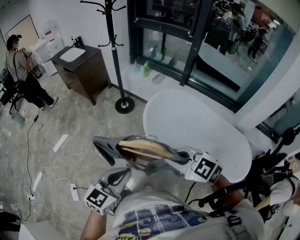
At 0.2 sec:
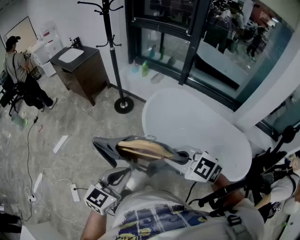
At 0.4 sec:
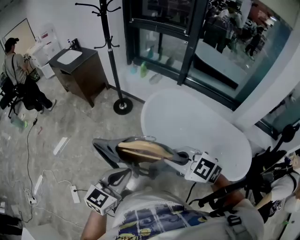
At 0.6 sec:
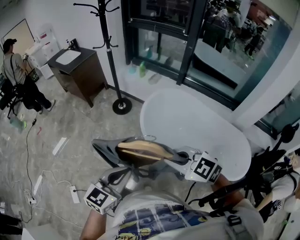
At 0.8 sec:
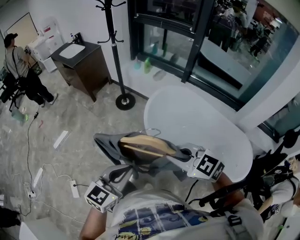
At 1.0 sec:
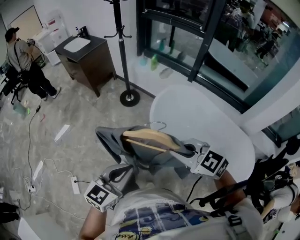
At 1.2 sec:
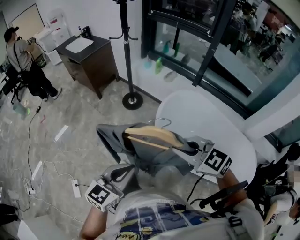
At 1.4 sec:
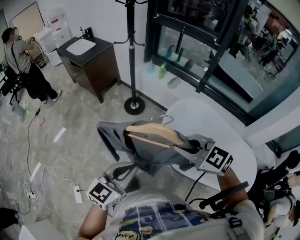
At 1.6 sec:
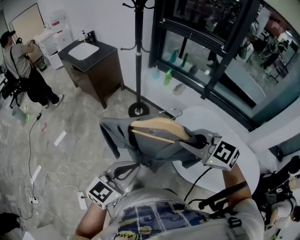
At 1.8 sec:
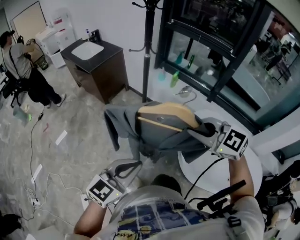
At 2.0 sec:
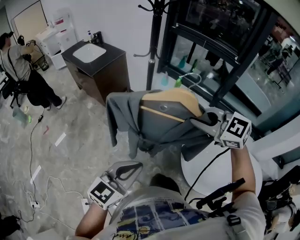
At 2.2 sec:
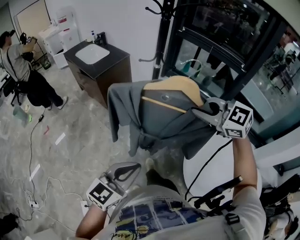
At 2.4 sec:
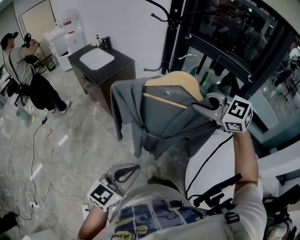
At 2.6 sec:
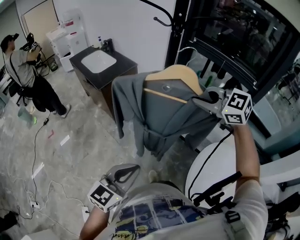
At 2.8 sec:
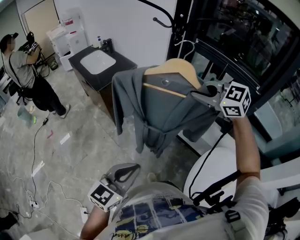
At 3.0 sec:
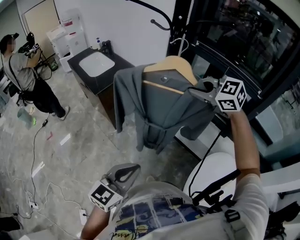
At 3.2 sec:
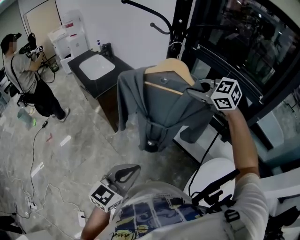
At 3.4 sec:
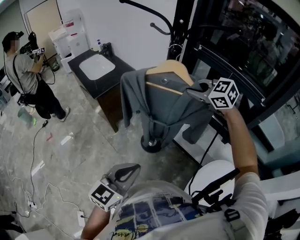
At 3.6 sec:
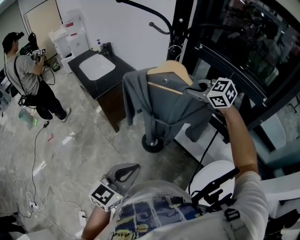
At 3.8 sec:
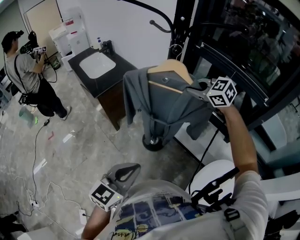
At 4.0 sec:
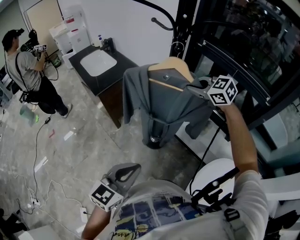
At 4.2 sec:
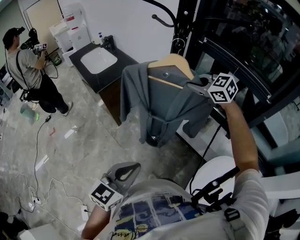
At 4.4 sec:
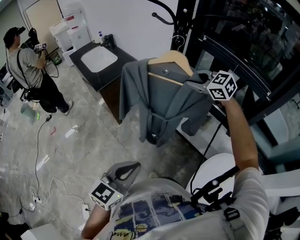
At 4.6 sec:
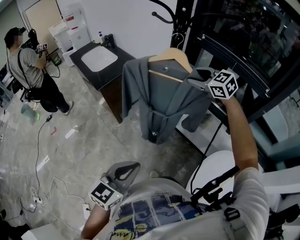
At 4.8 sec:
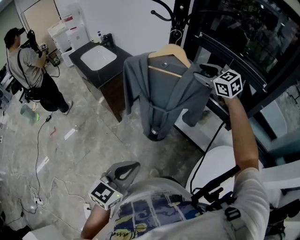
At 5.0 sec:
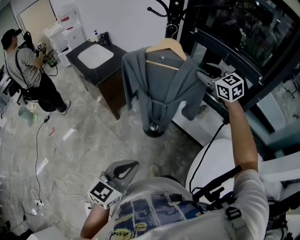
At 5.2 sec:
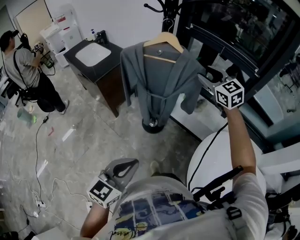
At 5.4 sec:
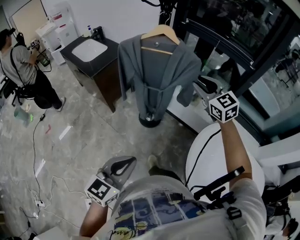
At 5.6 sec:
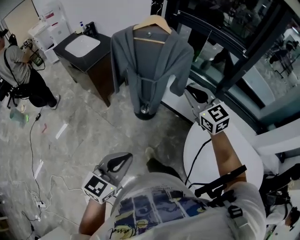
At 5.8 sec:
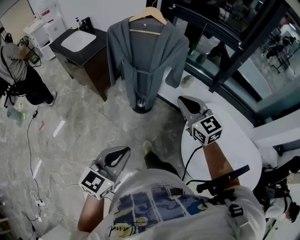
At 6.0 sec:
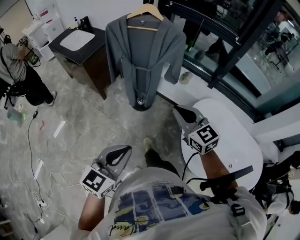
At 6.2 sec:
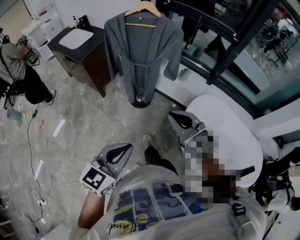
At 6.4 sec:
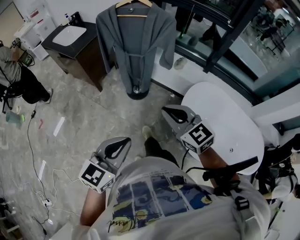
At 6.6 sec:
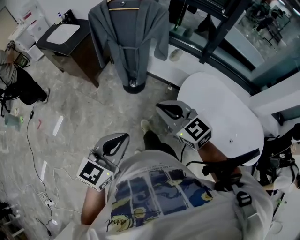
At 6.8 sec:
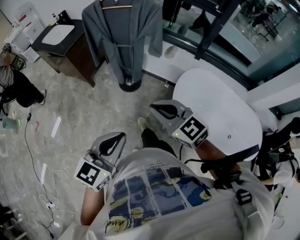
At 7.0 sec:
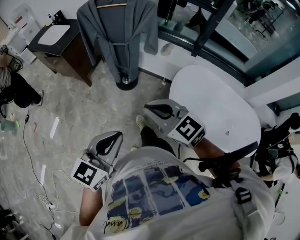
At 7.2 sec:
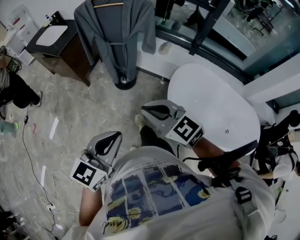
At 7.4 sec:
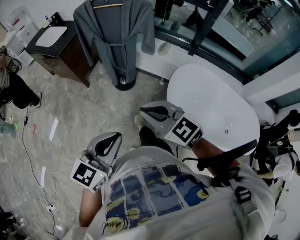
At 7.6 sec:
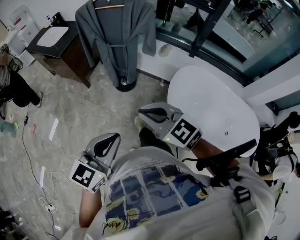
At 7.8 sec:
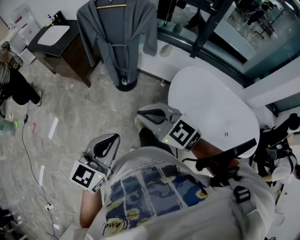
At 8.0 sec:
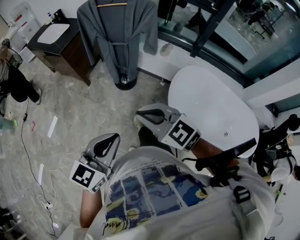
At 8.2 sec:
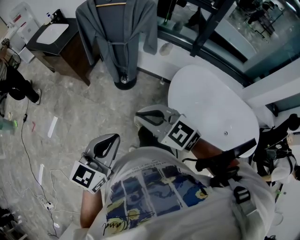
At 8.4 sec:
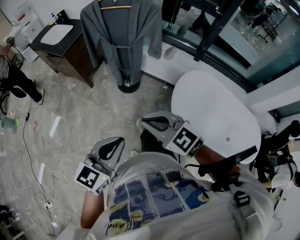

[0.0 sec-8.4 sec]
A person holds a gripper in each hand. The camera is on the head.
0.0 sec to 1.4 sec: The two grippers go approximately 15 cm forward.
1.4 sec to 2.8 sec: The right gripper travels forward by some 50 cm. Meanwhile the left gripper travels forward by roughly 35 cm.
2.8 sec to 4.2 sec: The left gripper shifts approximately 10 cm forward, while the right gripper shifts approximately 20 cm forward and downward.
4.2 sec to 5.6 sec: The left gripper moves backward, about 20 cm. Meanwhile the right gripper heads backward, covering about 30 cm, turns by about 40 degrees, and opens, then closes once more.
5.6 sec to 7.0 sec: The left gripper goes some 10 cm backward. The right gripper moves backward, roughly 25 cm.
7.0 sec to 8.4 sec: The grippers make only small movements.

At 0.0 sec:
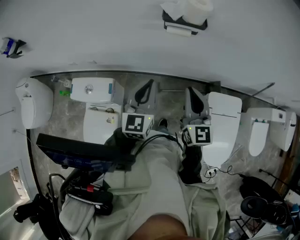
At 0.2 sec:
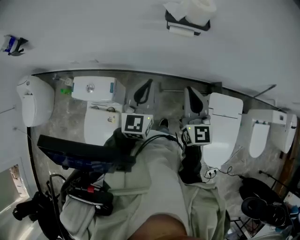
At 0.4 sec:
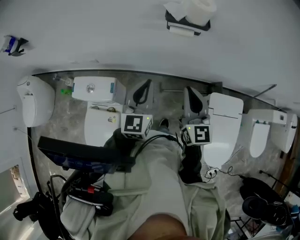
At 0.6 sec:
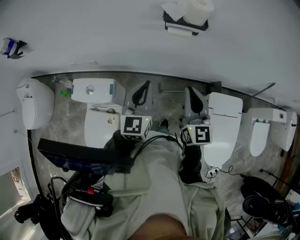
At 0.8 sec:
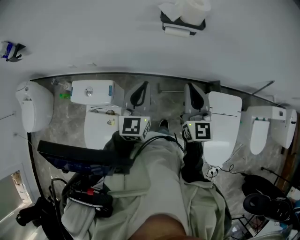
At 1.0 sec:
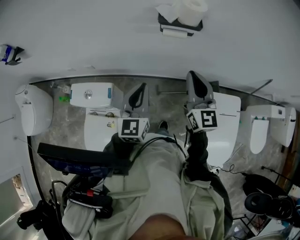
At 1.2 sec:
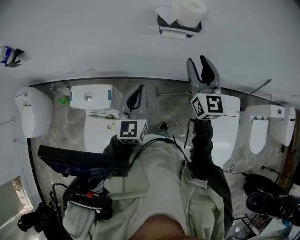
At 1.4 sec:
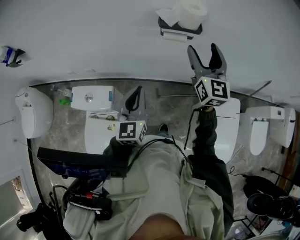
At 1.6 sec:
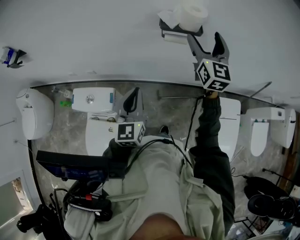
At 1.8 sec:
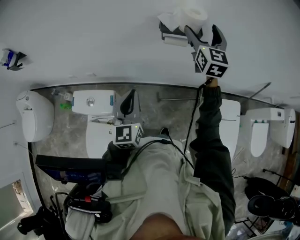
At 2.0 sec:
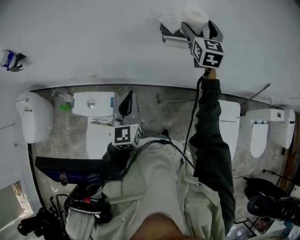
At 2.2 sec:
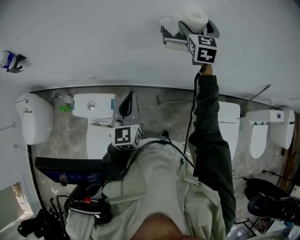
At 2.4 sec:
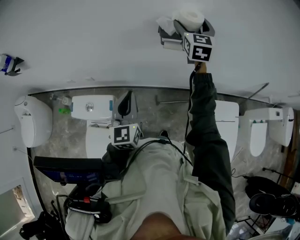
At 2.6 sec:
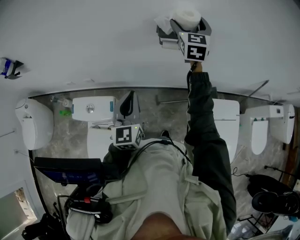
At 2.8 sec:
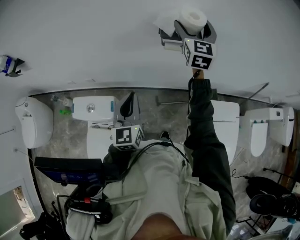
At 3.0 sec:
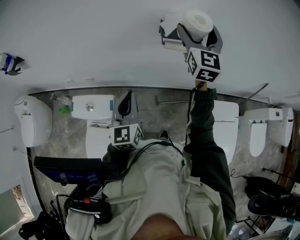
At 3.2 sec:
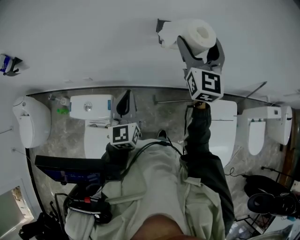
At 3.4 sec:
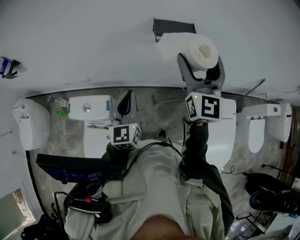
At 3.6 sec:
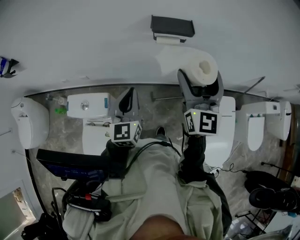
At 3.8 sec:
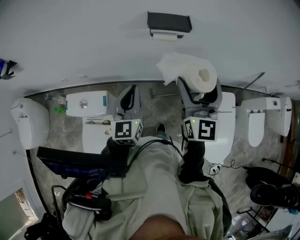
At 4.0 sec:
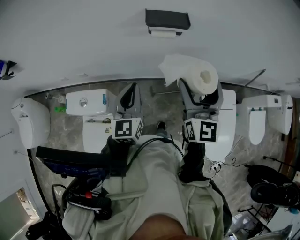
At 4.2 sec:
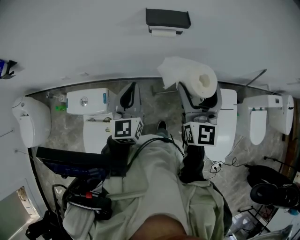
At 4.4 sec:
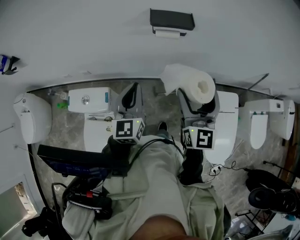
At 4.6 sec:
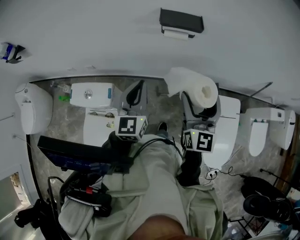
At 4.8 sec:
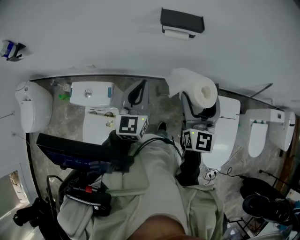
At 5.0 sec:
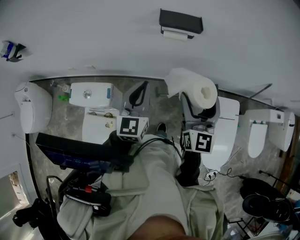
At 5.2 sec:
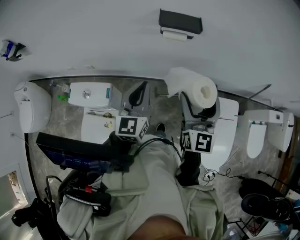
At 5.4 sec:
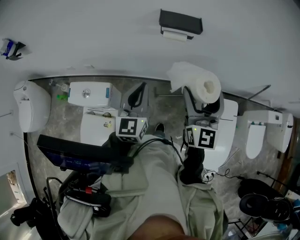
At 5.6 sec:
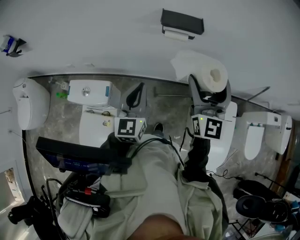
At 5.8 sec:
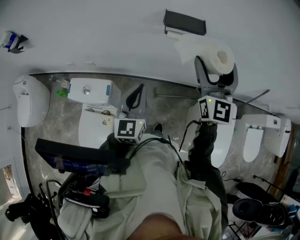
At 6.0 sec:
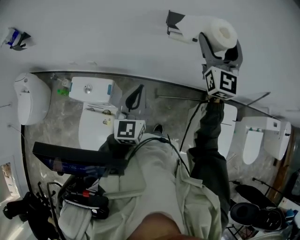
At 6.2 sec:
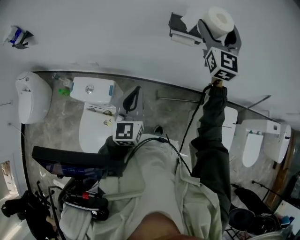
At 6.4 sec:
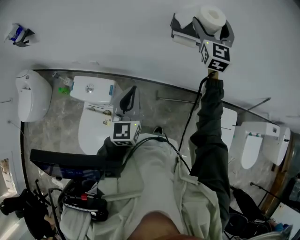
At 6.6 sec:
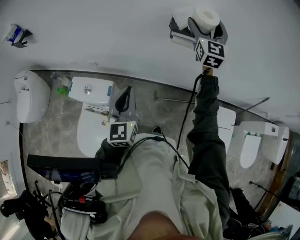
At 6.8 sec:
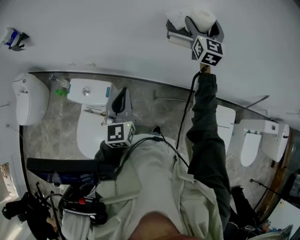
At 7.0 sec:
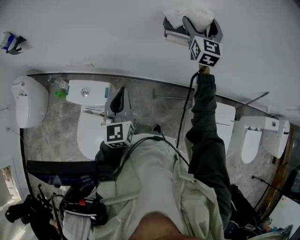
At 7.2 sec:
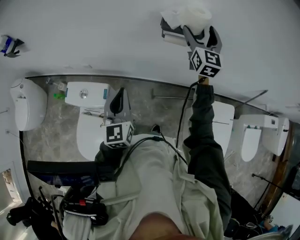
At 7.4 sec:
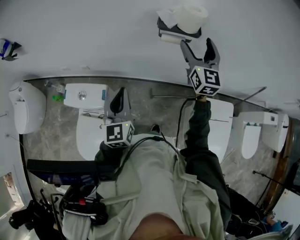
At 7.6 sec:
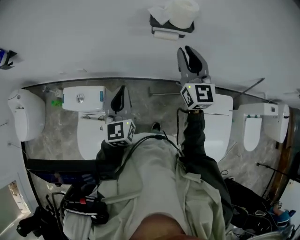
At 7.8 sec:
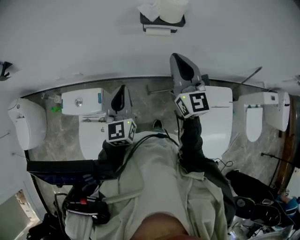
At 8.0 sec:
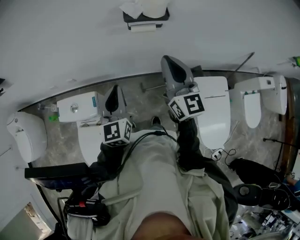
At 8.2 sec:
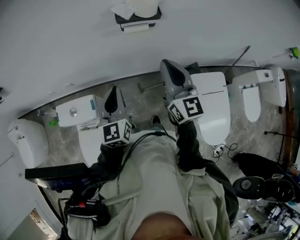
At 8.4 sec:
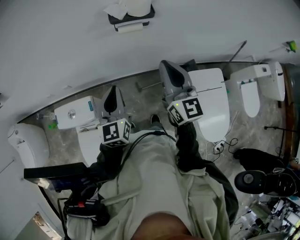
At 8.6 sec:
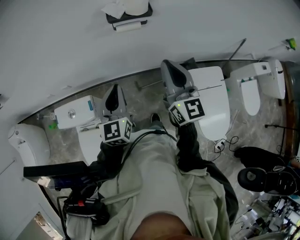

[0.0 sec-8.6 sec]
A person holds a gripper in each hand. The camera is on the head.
0.0 sec to 1.4 sec: The right gripper is displaced forward and upward by approximately 15 cm, and opens.
1.4 sec to 2.8 sec: The right gripper travels forward by roughly 15 cm.
2.8 sec to 4.4 sec: The right gripper heads backward, covering about 30 cm. Meanwhile the left gripper shifts roughly 5 cm to the right.
4.4 sec to 5.8 sec: The right gripper travels forward and upward by some 10 cm.
5.8 sec to 7.2 sec: The left gripper moves to the left, approximately 5 cm. Meanwhile the right gripper is displaced forward by approximately 20 cm.
7.2 sec to 8.6 sec: The left gripper is displaced to the right by roughly 10 cm. Meanwhile the right gripper is displaced backward by approximately 25 cm, and closes its fingers.

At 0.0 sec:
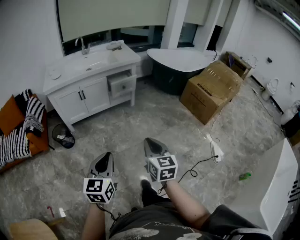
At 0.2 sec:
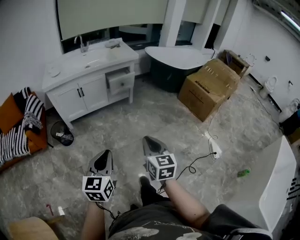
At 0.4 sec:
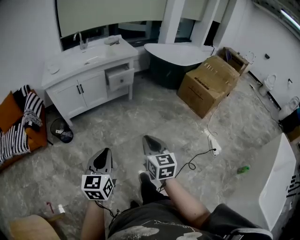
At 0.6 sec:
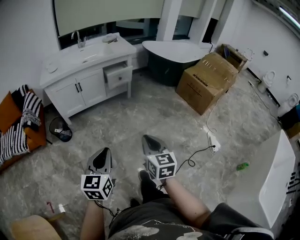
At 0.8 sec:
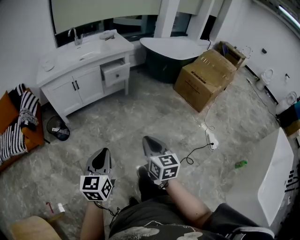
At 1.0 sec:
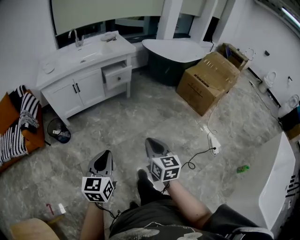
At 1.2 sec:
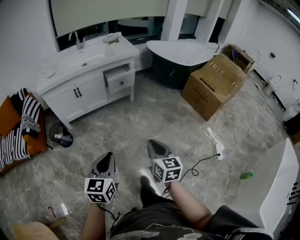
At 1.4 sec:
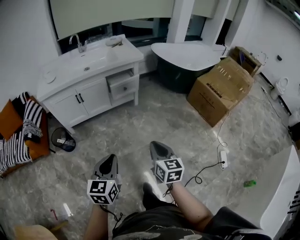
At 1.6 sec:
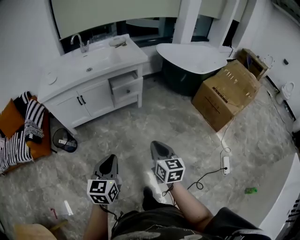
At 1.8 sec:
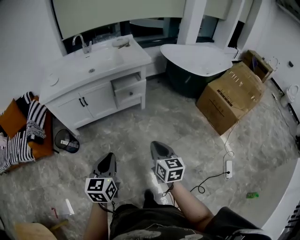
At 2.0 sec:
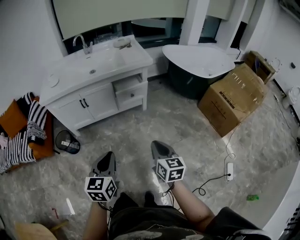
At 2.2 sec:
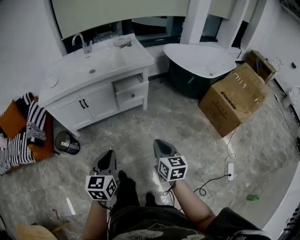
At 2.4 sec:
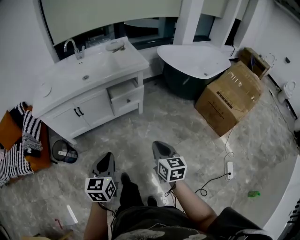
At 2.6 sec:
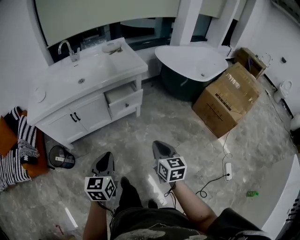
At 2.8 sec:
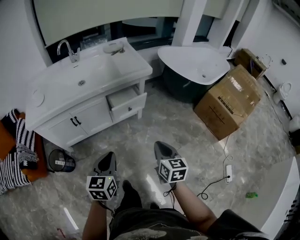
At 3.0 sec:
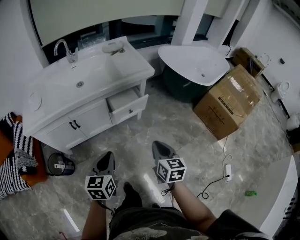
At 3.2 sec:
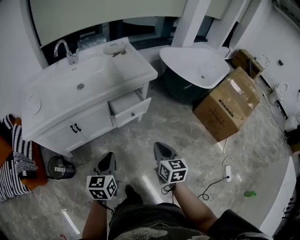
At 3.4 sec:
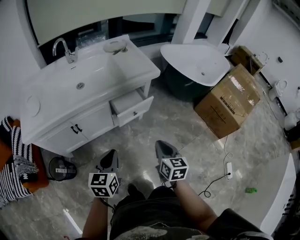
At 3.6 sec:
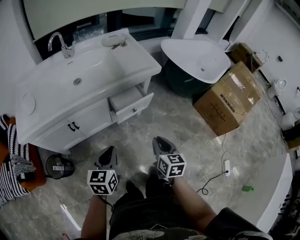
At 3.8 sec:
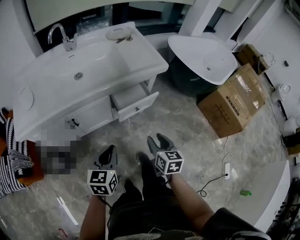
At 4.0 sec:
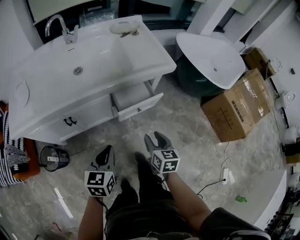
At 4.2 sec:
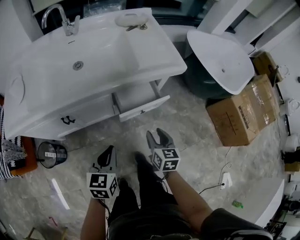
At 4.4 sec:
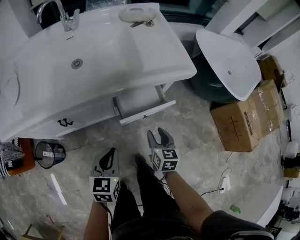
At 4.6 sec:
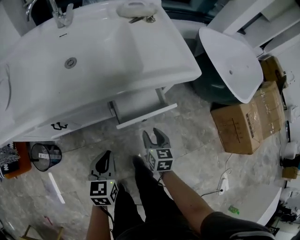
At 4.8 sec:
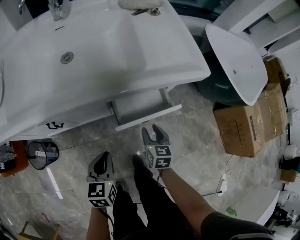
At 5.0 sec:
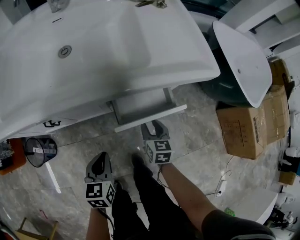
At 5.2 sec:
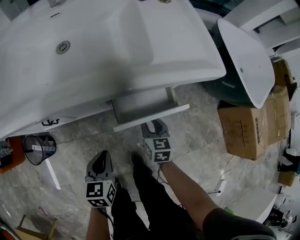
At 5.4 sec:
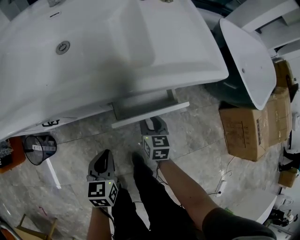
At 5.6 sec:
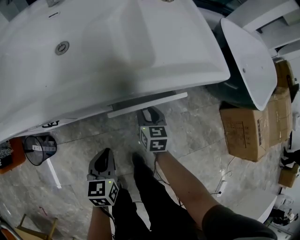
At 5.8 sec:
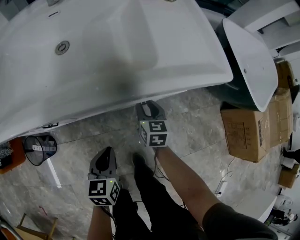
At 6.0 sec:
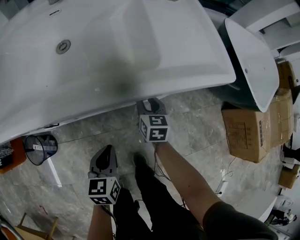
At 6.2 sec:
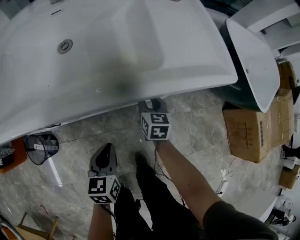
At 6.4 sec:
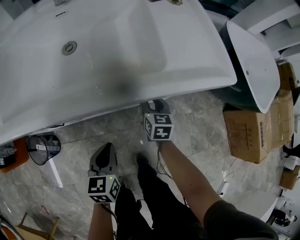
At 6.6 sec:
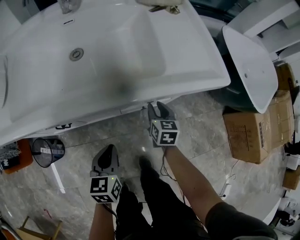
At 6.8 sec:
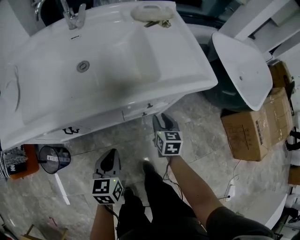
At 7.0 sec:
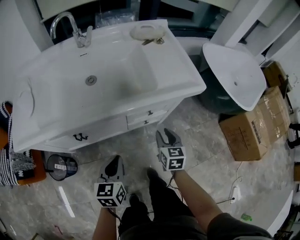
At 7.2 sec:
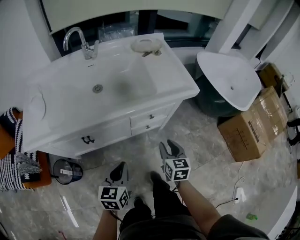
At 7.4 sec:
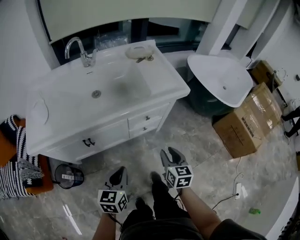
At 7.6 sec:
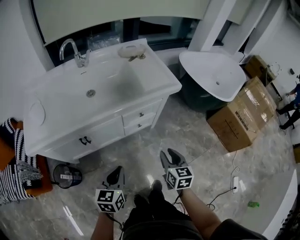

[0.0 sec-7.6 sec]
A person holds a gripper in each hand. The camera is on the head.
0.0 sec to 1.6 sec: The two grippers go some 20 cm forward.
1.6 sec to 3.0 sec: Both grippers travel together forward, roughly 30 cm.
3.0 sec to 4.6 sec: Both grippers move forward and downward, some 35 cm. The right gripper opens up.
4.6 sec to 6.0 sec: The left gripper heads downward and forward, covering some 10 cm; the right gripper is displaced forward and downward by some 20 cm.
6.0 sec to 7.6 sec: The right gripper travels backward and upward by some 40 cm. Meanwhile the left gripper heads upward and backward, covering approximately 25 cm, and swivels approximately 20 degrees.
